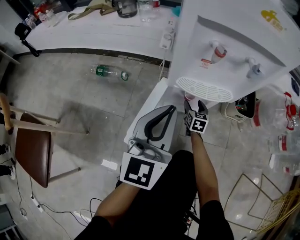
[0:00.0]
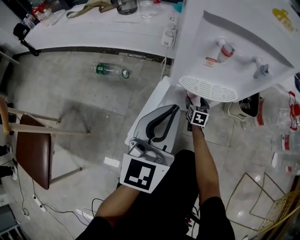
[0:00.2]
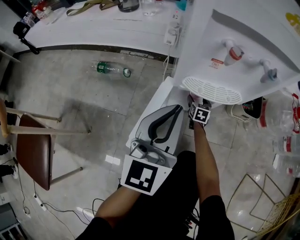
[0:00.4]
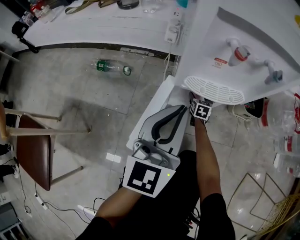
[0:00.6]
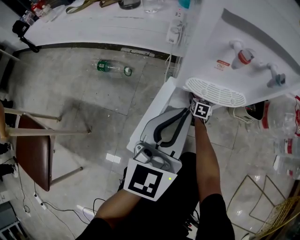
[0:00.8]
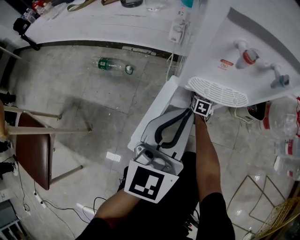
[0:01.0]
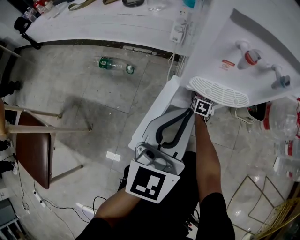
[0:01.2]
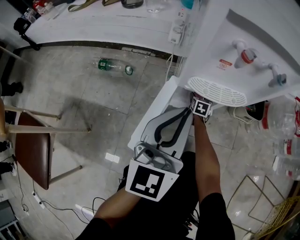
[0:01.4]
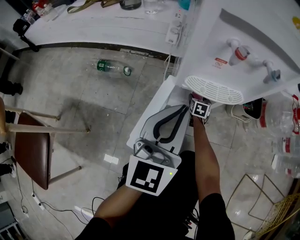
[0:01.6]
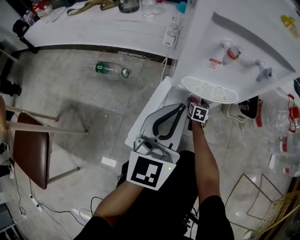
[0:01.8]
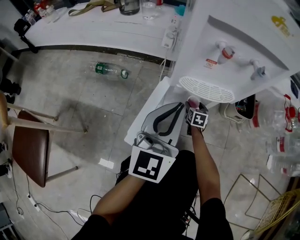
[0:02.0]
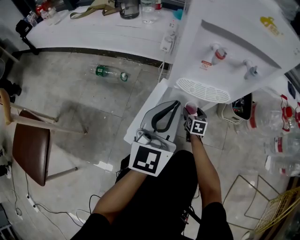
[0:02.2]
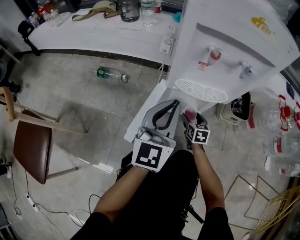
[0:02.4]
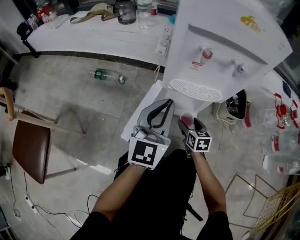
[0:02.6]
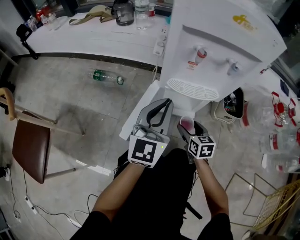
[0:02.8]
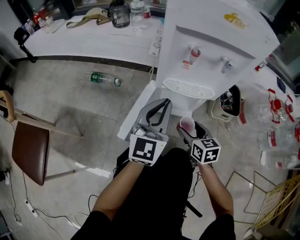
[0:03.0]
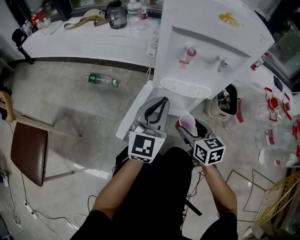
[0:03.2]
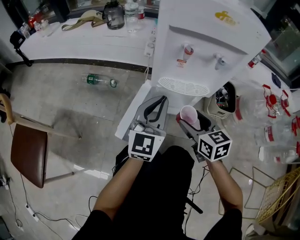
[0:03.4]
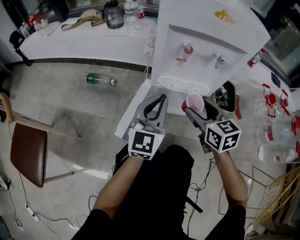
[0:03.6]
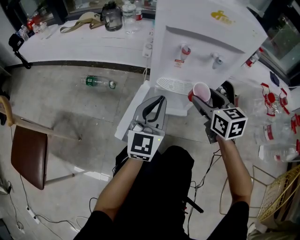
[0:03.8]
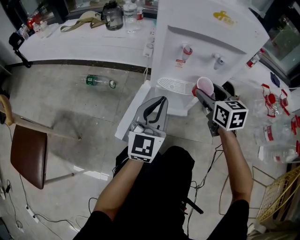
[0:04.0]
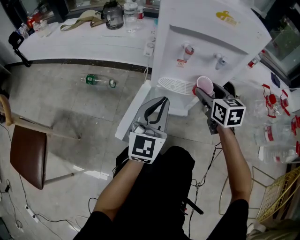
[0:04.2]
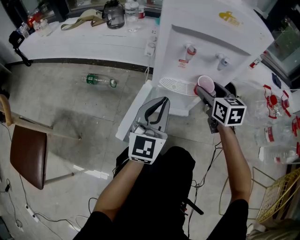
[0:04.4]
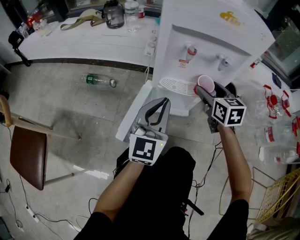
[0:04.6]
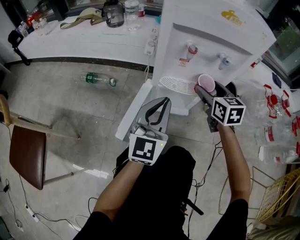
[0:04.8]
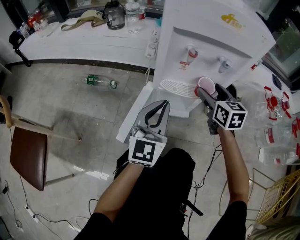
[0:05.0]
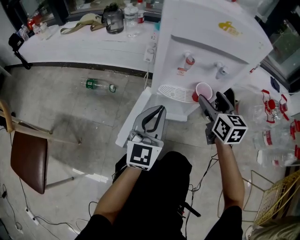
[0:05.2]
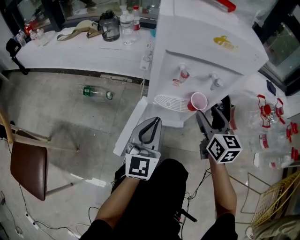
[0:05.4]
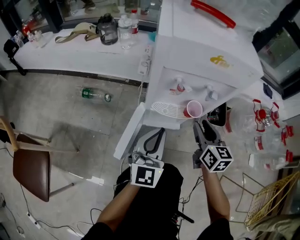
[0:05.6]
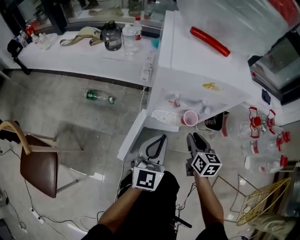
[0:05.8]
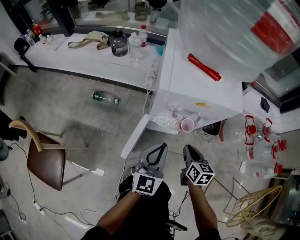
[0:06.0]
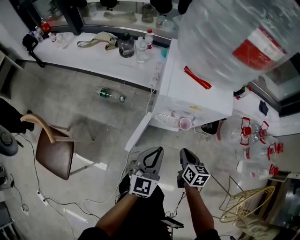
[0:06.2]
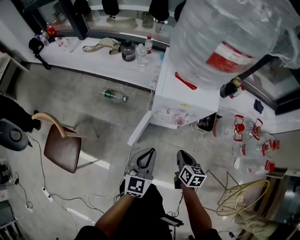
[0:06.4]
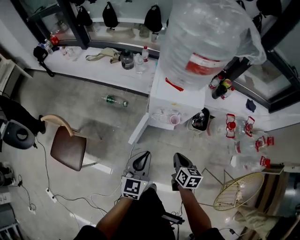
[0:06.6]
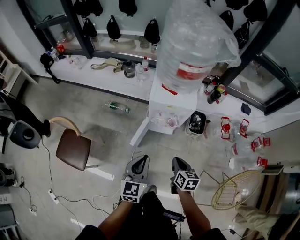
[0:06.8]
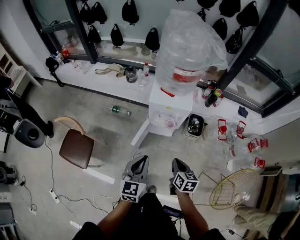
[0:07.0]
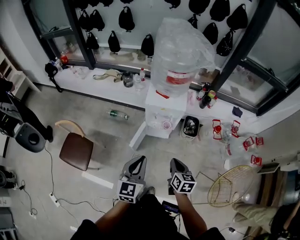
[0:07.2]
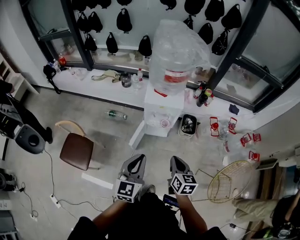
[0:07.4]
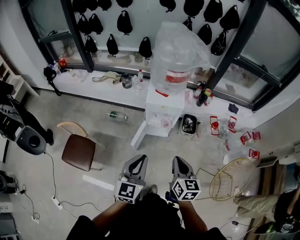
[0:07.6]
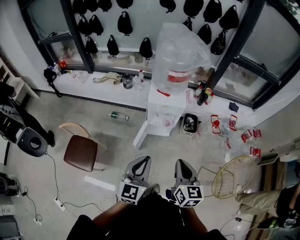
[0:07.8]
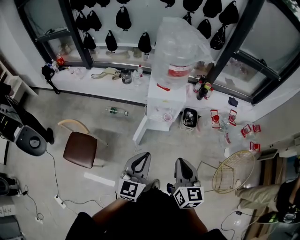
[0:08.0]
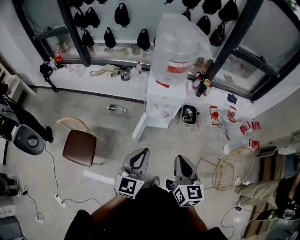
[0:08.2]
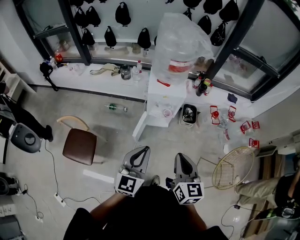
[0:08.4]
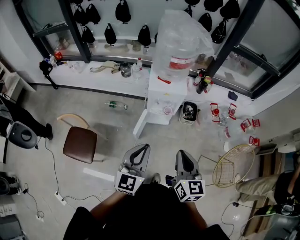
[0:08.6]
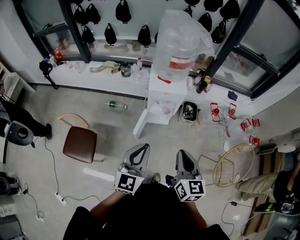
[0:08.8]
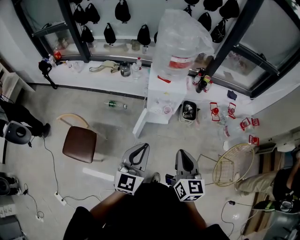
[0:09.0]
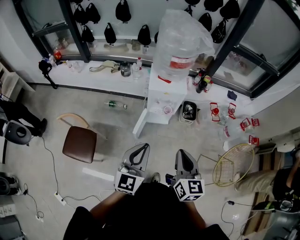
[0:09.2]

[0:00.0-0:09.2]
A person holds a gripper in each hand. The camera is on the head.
0:00.0 to 0:01.6: The right gripper is displaced downward and forward by about 10 cm.
0:01.6 to 0:03.0: The right gripper moves upward and backward, some 30 cm, and rotates about 30 degrees.
0:03.0 to 0:04.6: The right gripper heads upward and forward, covering some 20 cm.
0:04.6 to 0:06.2: The right gripper moves backward and upward, some 20 cm, swivels approximately 30 degrees, and closes, while the left gripper heads upward, covering about 20 cm.
0:06.2 to 0:07.6: The grippers both shift upward and backward by roughly 50 cm. The right gripper turns by roughly 20 degrees.
0:07.6 to 0:09.2: The right gripper goes about 5 cm upward.

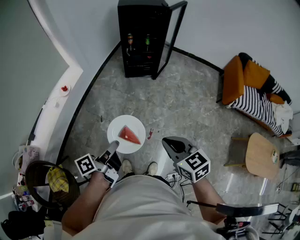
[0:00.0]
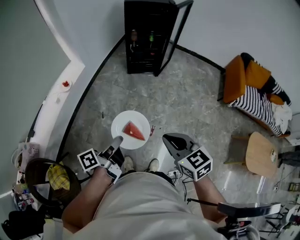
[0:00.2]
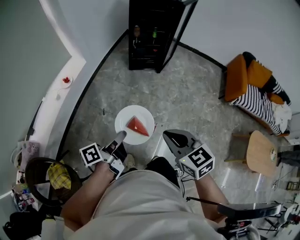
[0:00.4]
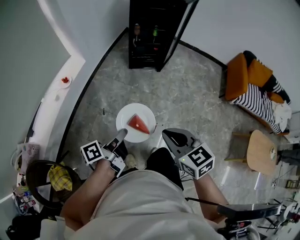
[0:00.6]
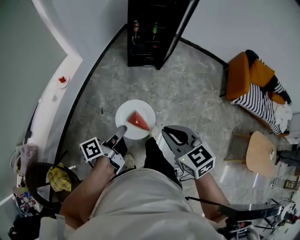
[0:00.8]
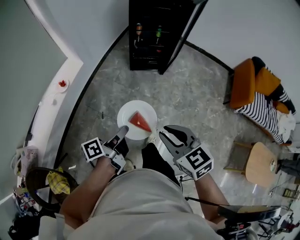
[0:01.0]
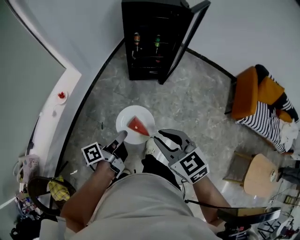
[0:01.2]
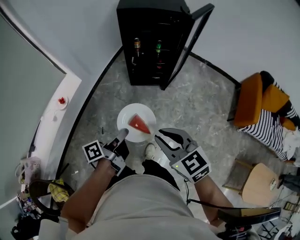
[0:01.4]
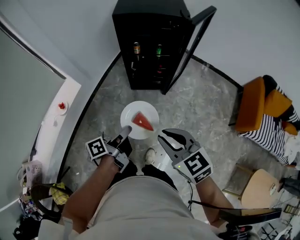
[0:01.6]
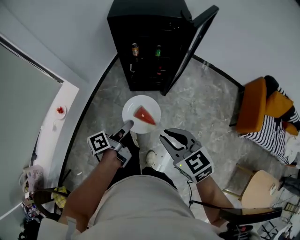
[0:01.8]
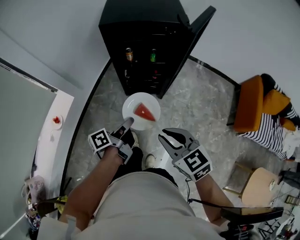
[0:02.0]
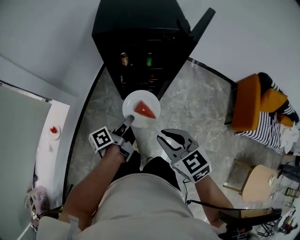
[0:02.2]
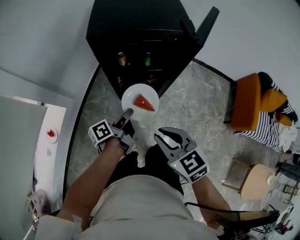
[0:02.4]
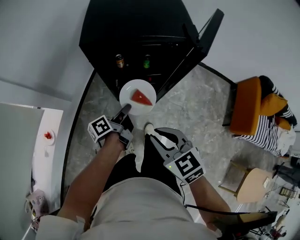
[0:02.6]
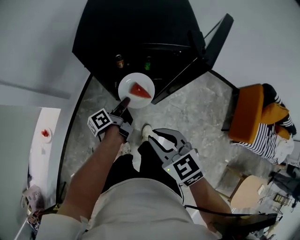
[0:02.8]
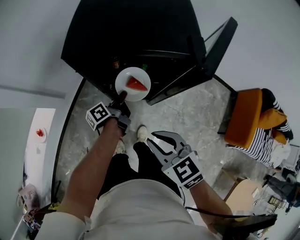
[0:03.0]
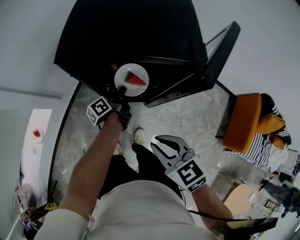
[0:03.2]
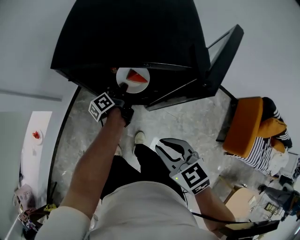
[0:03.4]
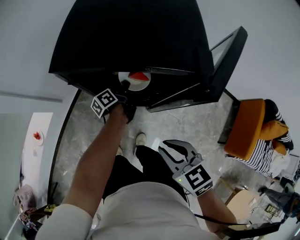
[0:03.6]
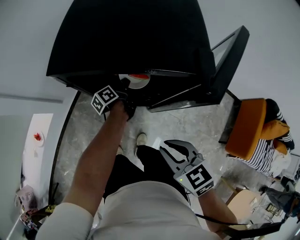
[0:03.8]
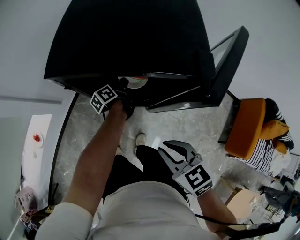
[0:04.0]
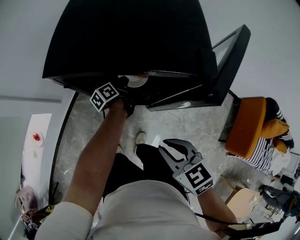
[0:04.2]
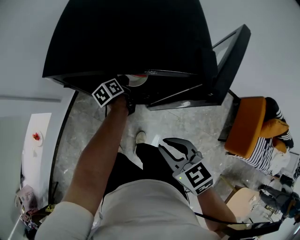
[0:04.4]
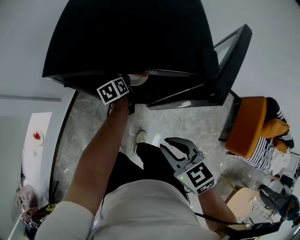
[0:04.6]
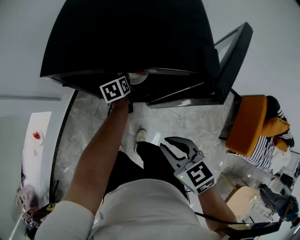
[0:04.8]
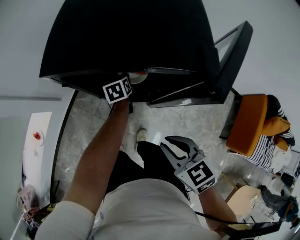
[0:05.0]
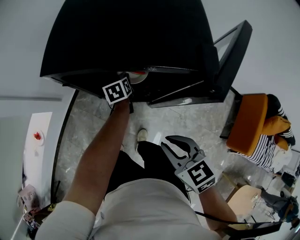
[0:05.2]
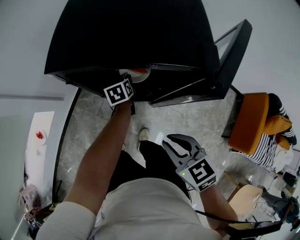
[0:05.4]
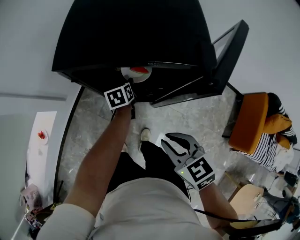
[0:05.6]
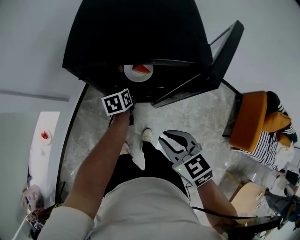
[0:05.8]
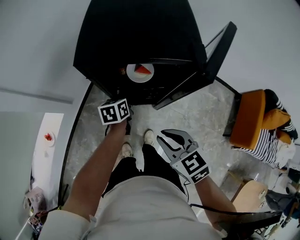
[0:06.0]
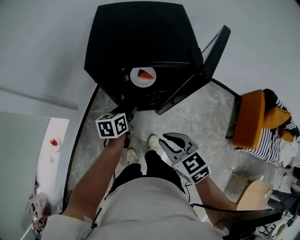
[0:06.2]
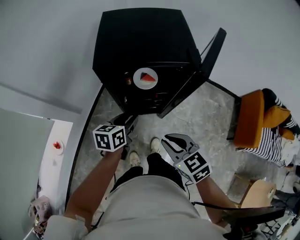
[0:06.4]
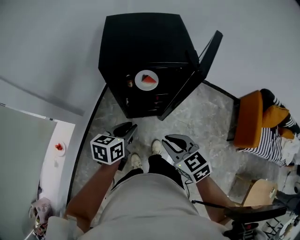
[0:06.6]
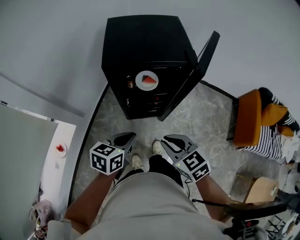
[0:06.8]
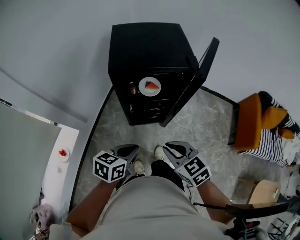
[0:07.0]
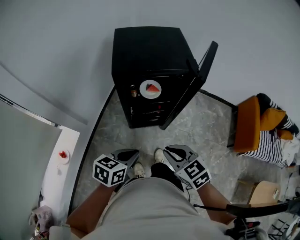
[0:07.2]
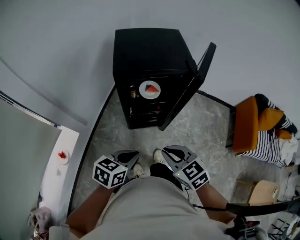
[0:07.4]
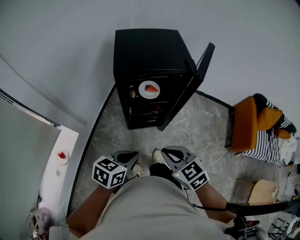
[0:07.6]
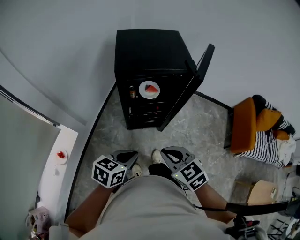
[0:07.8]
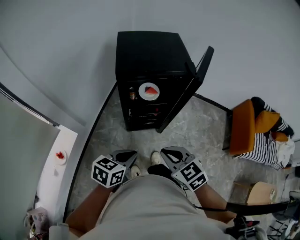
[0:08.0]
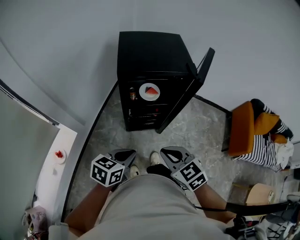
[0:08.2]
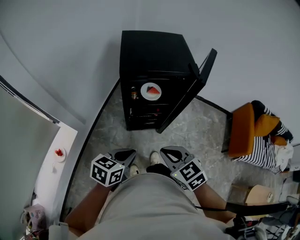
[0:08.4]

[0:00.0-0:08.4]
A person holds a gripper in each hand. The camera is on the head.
0:00.0 to 0:01.4: The two grippers go some 35 cm forward.
0:01.4 to 0:02.8: The two grippers go roughly 40 cm forward.
0:02.8 to 0:04.2: The left gripper is displaced forward and downward by roughly 20 cm. The right gripper shifts about 10 cm to the right, downward and forward.
0:04.2 to 0:05.6: The left gripper rotates about 40 degrees, and opens.
0:05.6 to 0:07.0: The left gripper moves some 40 cm, rotates about 40 degrees, and closes. The right gripper changes place by approximately 15 cm.
0:07.0 to 0:08.4: The left gripper ends up about 5 cm from where it was, while the right gripper changes place by about 5 cm.

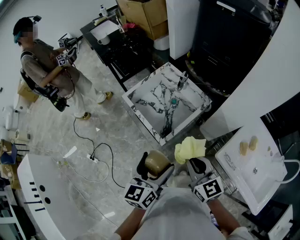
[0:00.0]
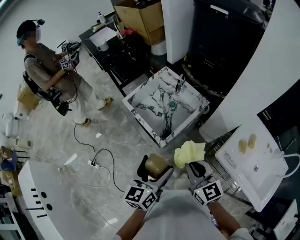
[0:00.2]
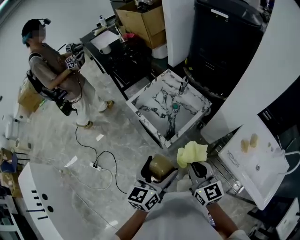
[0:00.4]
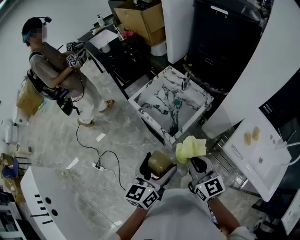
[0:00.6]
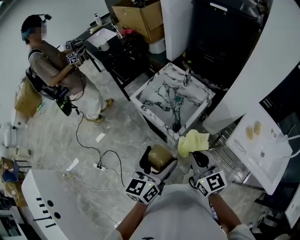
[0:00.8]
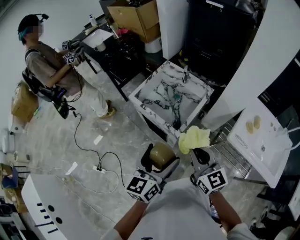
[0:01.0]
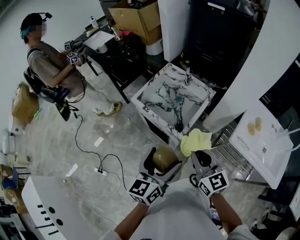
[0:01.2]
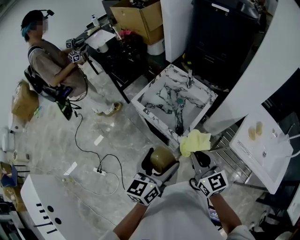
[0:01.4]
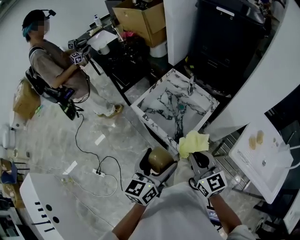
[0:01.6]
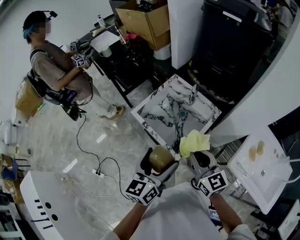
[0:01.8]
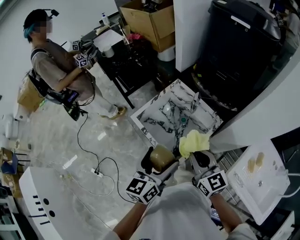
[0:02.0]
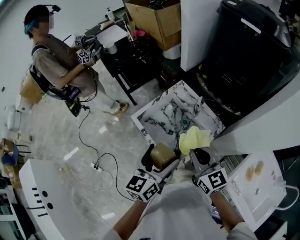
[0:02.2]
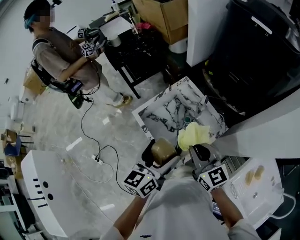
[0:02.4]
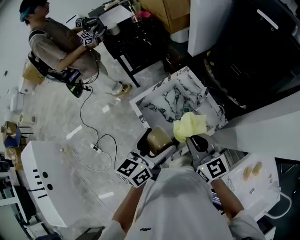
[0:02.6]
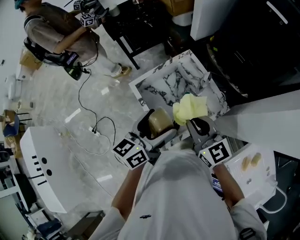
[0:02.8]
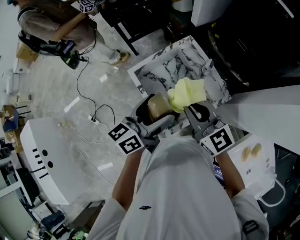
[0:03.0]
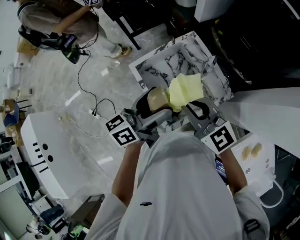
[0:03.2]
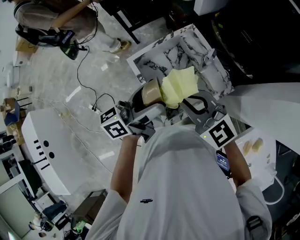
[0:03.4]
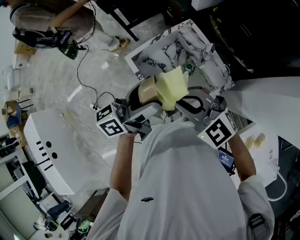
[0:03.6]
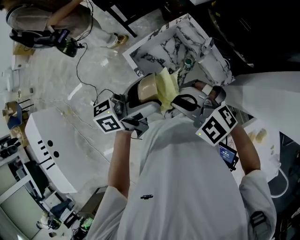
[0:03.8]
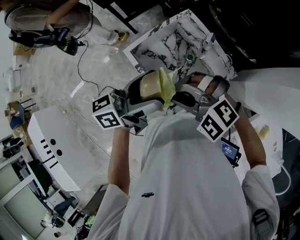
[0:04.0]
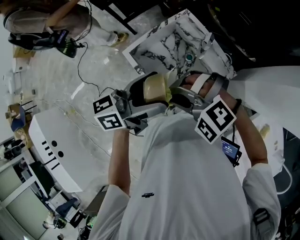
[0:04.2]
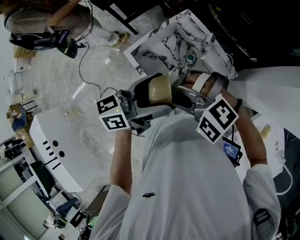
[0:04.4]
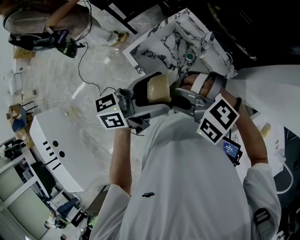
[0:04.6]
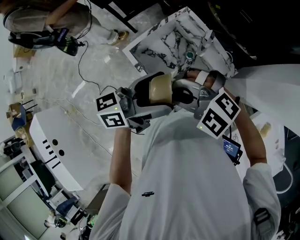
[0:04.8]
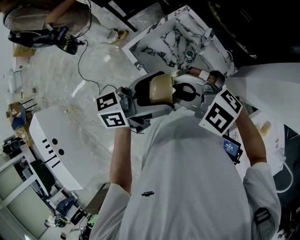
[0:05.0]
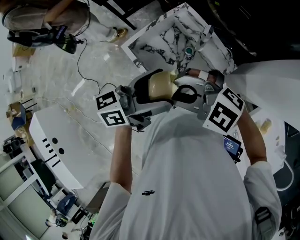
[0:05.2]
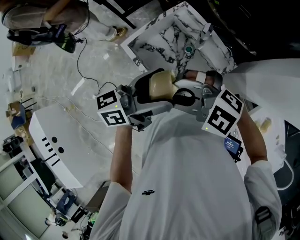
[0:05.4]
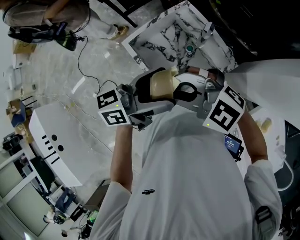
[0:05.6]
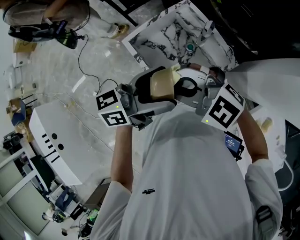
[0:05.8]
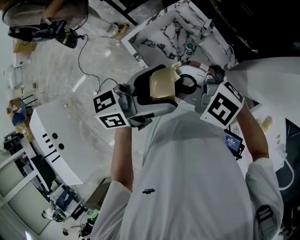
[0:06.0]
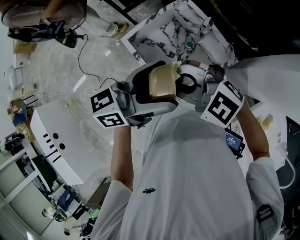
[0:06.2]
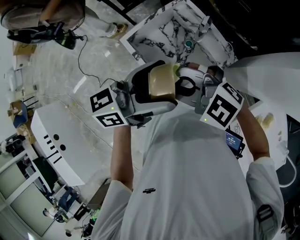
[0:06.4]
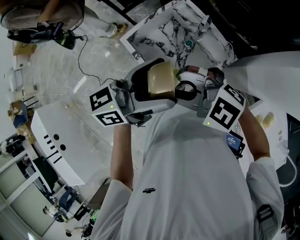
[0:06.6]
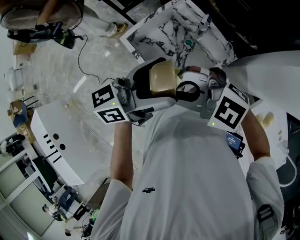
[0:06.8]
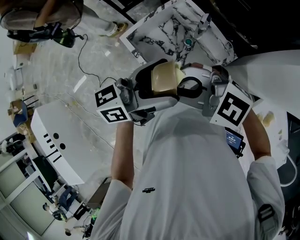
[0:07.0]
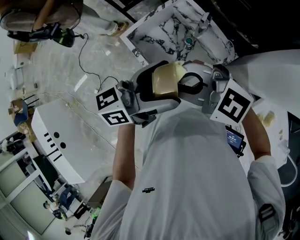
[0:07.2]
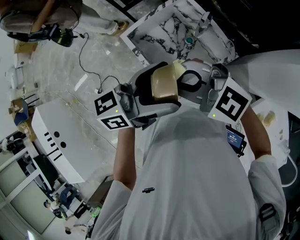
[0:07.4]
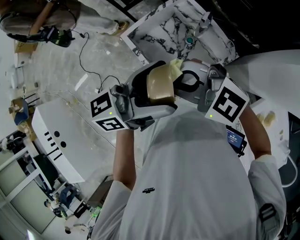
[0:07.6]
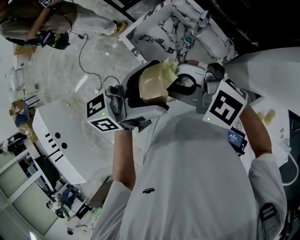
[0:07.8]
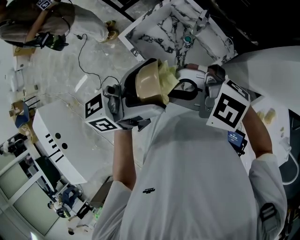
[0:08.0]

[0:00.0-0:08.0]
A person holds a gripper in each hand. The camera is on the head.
0:00.0 to 0:01.6: Both grippers travel together to the left, approximately 10 cm.
0:01.6 to 0:03.2: The two grippers go approximately 20 cm forward. The left gripper changes its angle by roughly 30 degrees. Meanwhile the right gripper turns by about 40 degrees.
0:03.2 to 0:04.8: The left gripper swivels roughly 20 degrees. Meanwhile the right gripper ends up about 5 cm from where it was, and turns by roughly 50 degrees.
0:04.8 to 0:06.4: There are only small adjustments of the grippers.
0:06.4 to 0:08.0: The grippers stay close to where they were, moving slightly.
